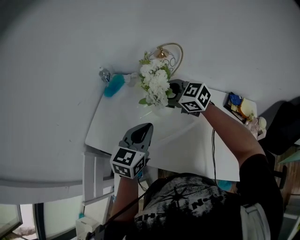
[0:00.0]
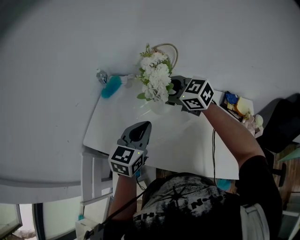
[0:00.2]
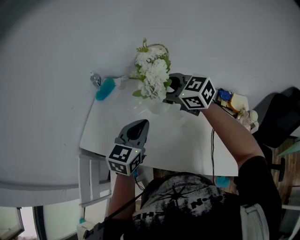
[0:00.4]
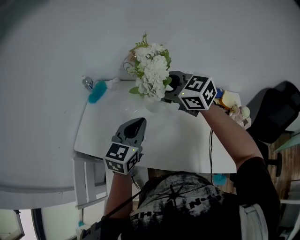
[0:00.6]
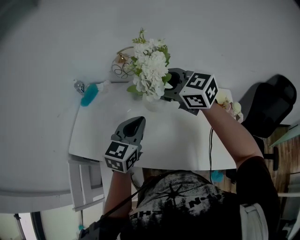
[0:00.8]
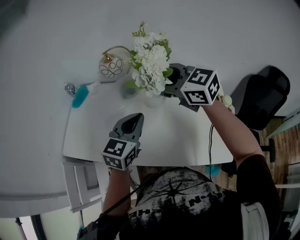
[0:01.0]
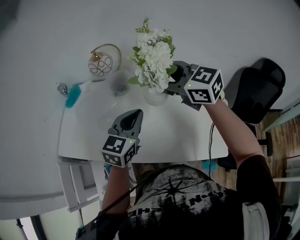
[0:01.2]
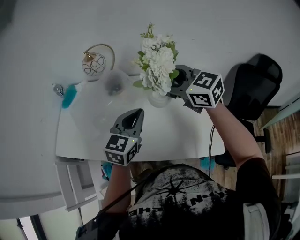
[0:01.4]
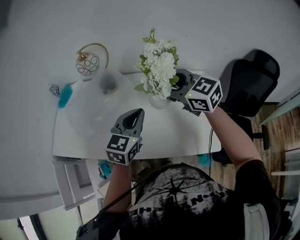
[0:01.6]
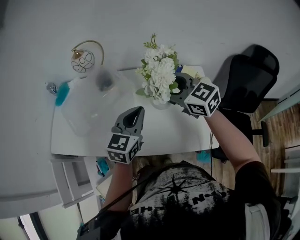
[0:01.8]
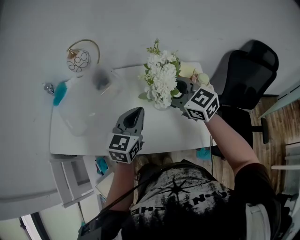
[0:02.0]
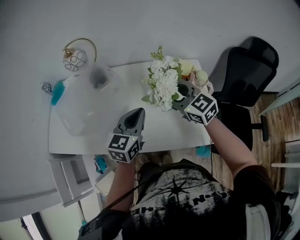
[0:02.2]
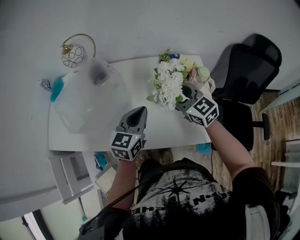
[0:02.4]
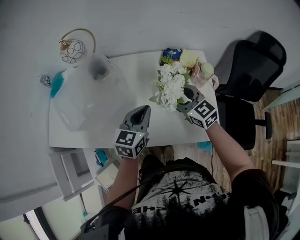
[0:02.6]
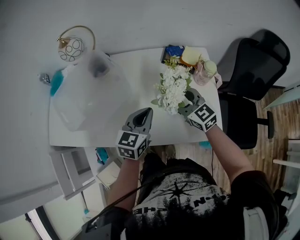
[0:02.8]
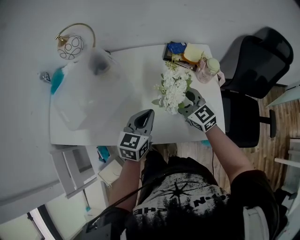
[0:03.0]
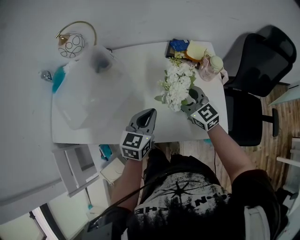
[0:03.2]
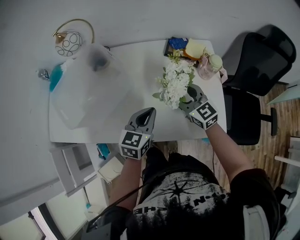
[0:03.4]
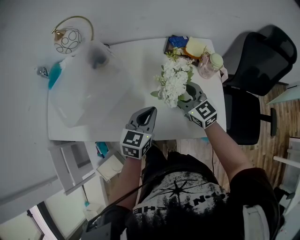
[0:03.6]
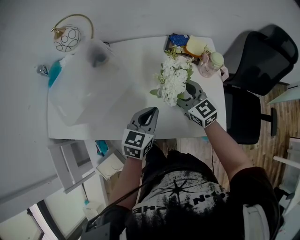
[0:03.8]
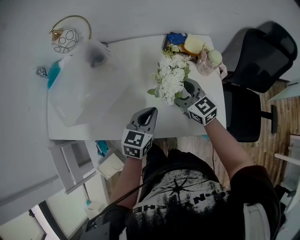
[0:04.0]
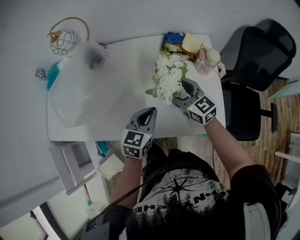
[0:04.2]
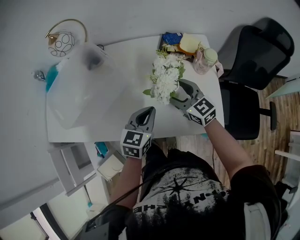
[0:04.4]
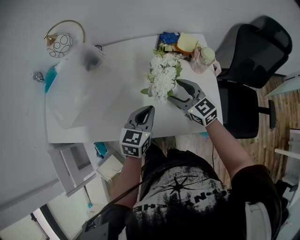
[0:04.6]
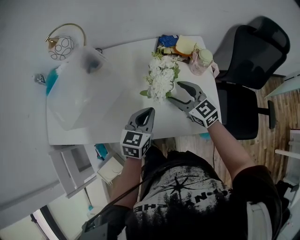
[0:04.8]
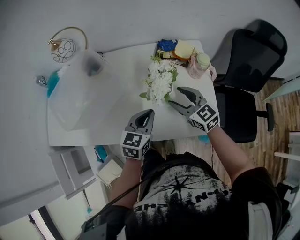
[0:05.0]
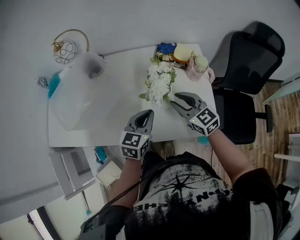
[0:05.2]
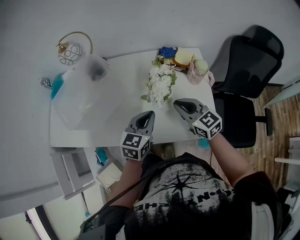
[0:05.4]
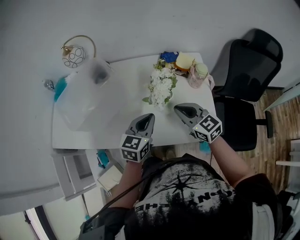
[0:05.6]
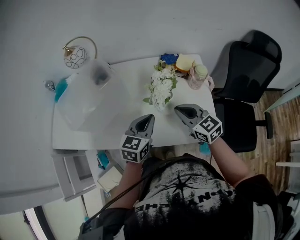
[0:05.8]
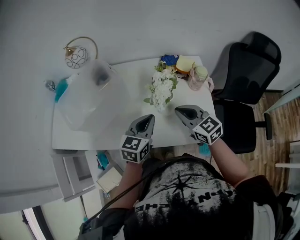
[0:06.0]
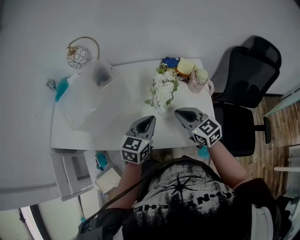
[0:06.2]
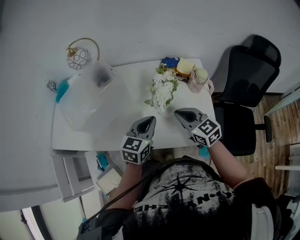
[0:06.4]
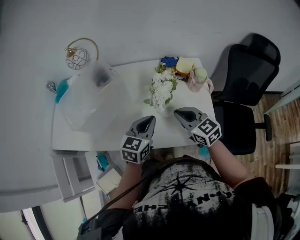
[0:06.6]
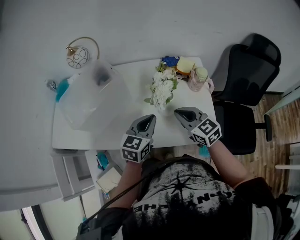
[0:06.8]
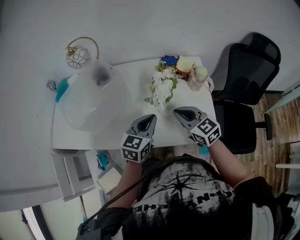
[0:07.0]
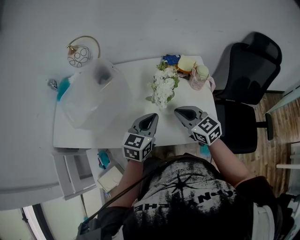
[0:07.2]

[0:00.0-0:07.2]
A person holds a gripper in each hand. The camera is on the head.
0:00.0 to 0:01.4: The right gripper shifts about 30 cm to the right, backward and upward, and swivels some 20 degrees. Meanwhile the left gripper shifts some 20 cm to the right.
0:01.4 to 0:02.8: The right gripper moves downward and to the right, roughly 25 cm; the left gripper shifts roughly 15 cm downward and to the right.
0:02.8 to 0:04.4: The left gripper ends up approximately 5 cm from where it was.
0:04.4 to 0:05.8: The right gripper shifts about 10 cm backward and upward, and closes its fingers. The left gripper travels upward by about 5 cm.
0:05.8 to 0:07.2: The grippers move only a little.

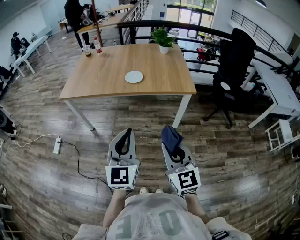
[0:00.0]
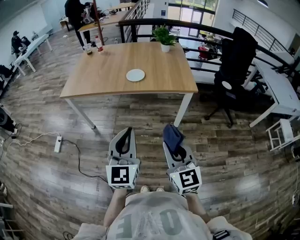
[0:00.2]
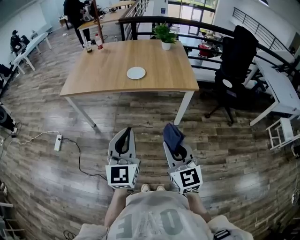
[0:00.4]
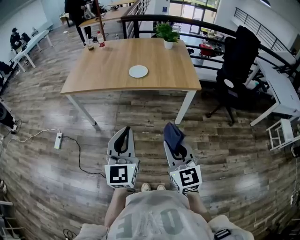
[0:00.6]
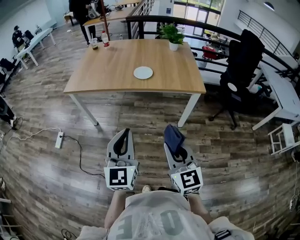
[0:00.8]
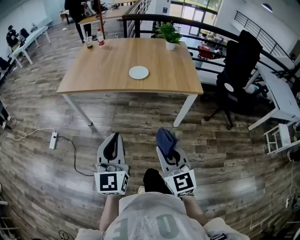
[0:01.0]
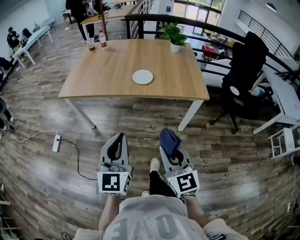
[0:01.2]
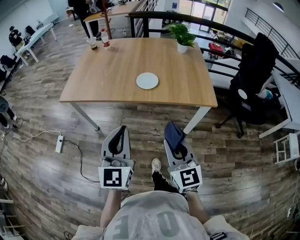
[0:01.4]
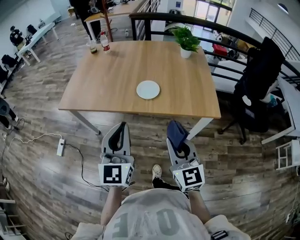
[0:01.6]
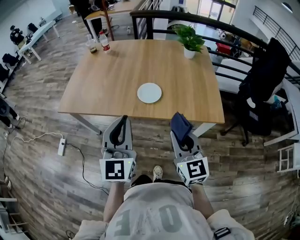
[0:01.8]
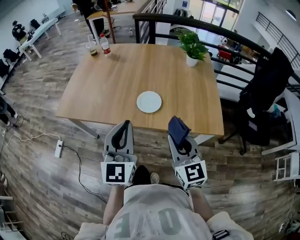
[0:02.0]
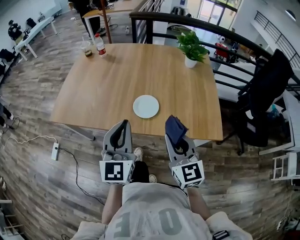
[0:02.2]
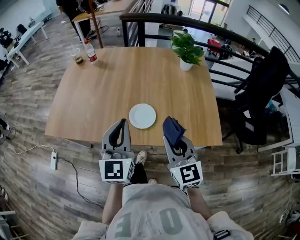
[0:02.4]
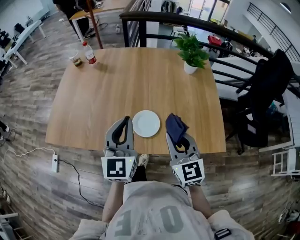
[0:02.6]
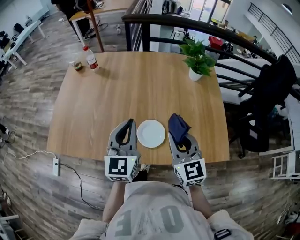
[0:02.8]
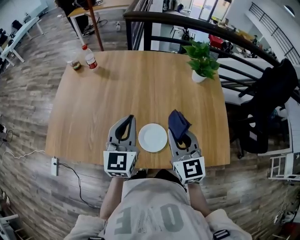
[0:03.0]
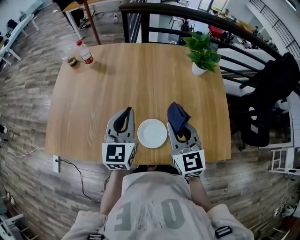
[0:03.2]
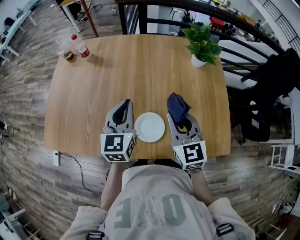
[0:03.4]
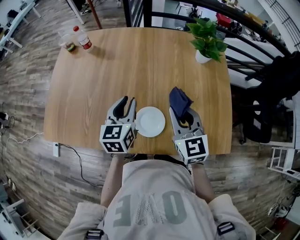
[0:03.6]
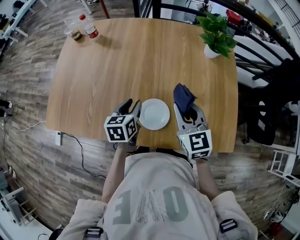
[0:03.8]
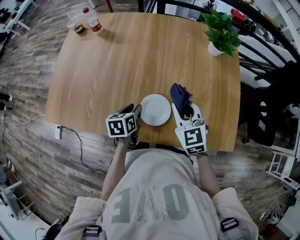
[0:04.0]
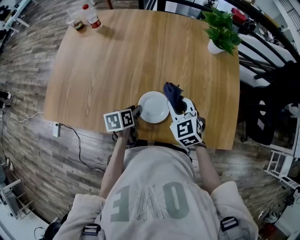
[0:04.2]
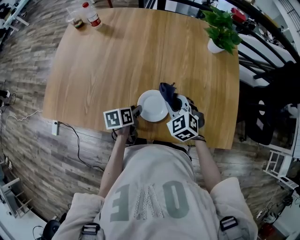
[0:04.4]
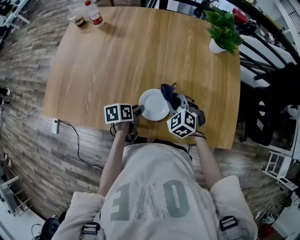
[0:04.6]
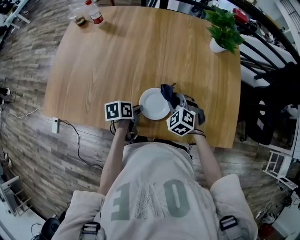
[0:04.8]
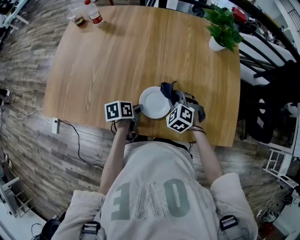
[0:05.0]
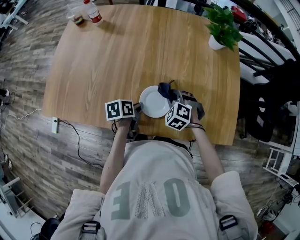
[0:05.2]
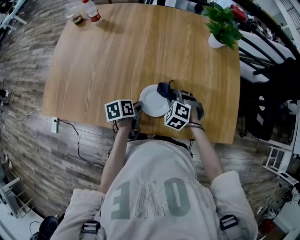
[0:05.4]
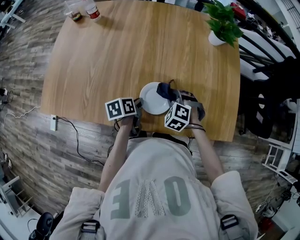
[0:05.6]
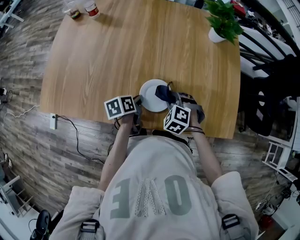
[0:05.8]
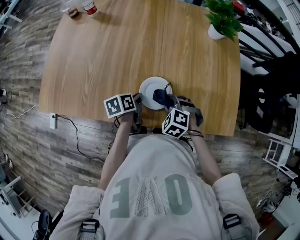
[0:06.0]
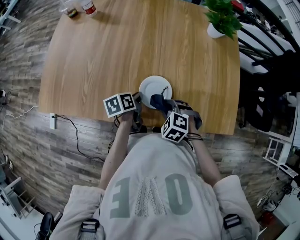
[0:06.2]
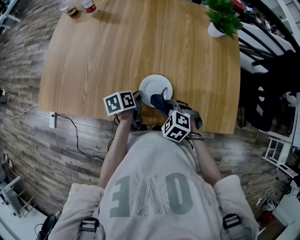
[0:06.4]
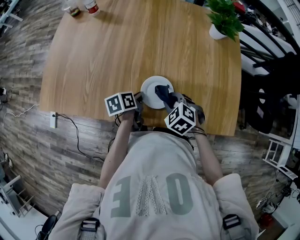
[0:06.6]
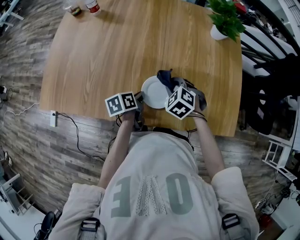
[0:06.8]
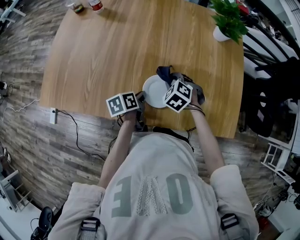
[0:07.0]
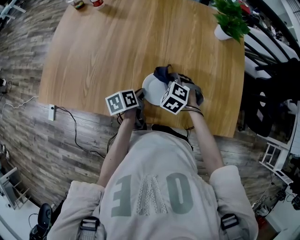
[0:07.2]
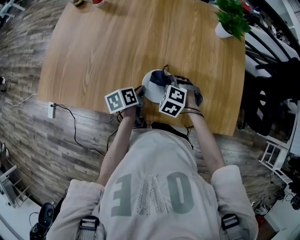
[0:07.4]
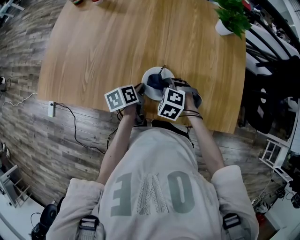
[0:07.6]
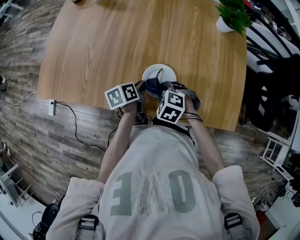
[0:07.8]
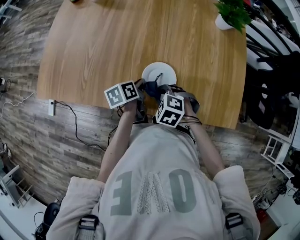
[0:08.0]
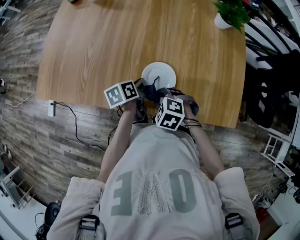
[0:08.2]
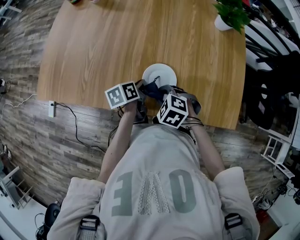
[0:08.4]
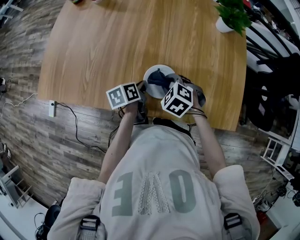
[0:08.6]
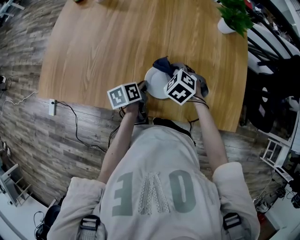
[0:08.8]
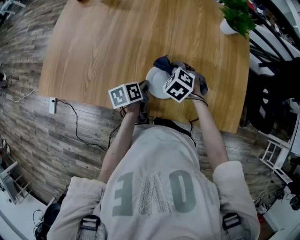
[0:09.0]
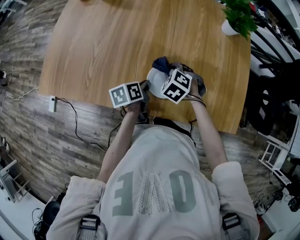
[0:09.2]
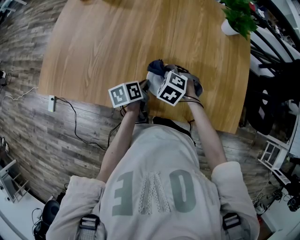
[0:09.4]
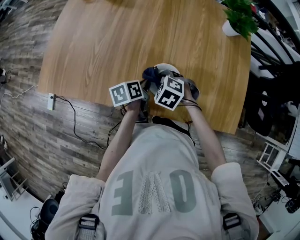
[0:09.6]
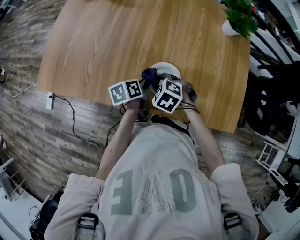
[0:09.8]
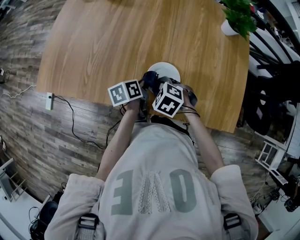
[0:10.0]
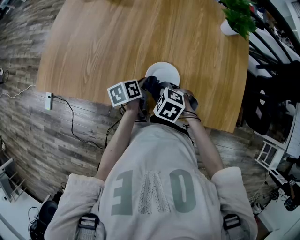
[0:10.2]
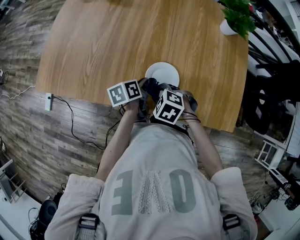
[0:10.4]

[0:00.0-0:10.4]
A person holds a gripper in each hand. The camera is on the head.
0:00.0 to 0:01.4: The two grippers go some 20 cm forward.
0:01.4 to 0:03.0: The pair of grippers is taken forward, approximately 50 cm.
0:03.0 to 0:04.4: The left gripper is displaced downward by some 25 cm, angles its fingers downward, by some 40 degrees, and opens. Meanwhile the right gripper shifts about 15 cm downward, and tips its fingers downward by approximately 30 degrees.
0:04.4 to 0:06.0: The right gripper heads backward and downward, covering some 10 cm, and rotates some 20 degrees. The left gripper closes.
0:06.0 to 0:07.4: The right gripper travels forward by roughly 5 cm.
0:07.4 to 0:09.0: The right gripper moves about 10 cm backward and comes back.
0:09.0 to 0:10.4: The right gripper goes about 15 cm backward and to the left.

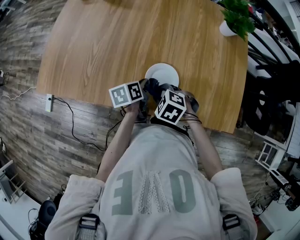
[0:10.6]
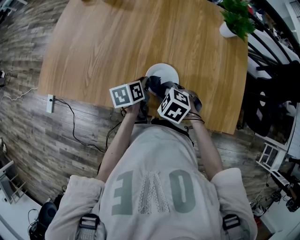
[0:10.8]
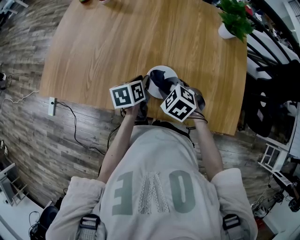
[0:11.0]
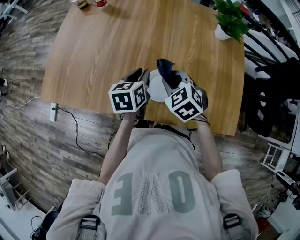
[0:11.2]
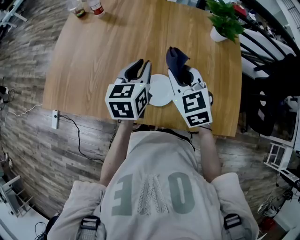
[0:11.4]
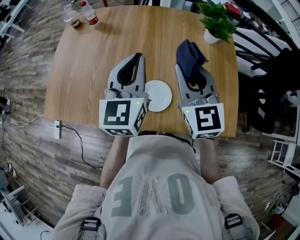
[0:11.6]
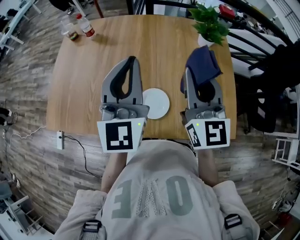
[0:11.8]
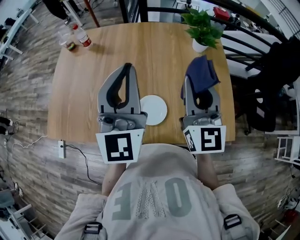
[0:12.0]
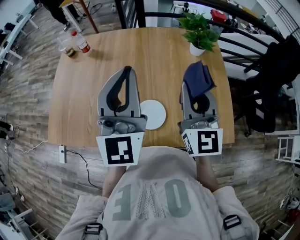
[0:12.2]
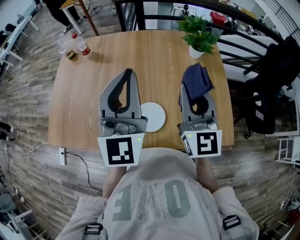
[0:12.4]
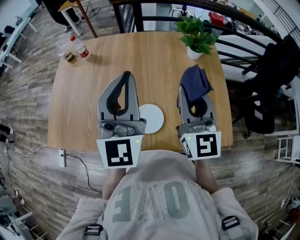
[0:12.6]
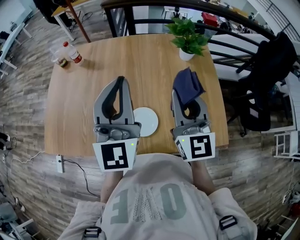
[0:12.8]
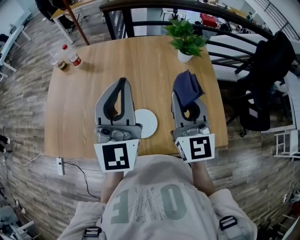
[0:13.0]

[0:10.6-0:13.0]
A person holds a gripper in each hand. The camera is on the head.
0:10.6 to 0:11.8: The grippers both shift upward by about 35 cm. The left gripper tips its fingers upward by about 50 degrees, while the right gripper tilts its fingers approximately 70 degrees upward.
0:11.8 to 0:13.0: The grippers move only a little.

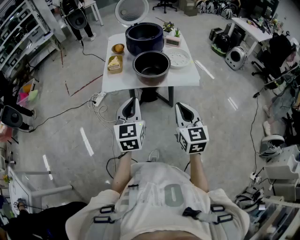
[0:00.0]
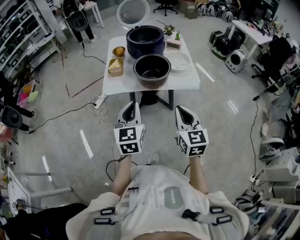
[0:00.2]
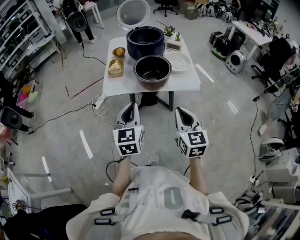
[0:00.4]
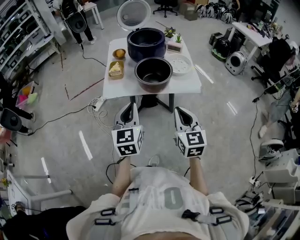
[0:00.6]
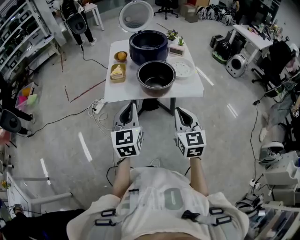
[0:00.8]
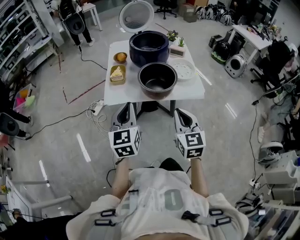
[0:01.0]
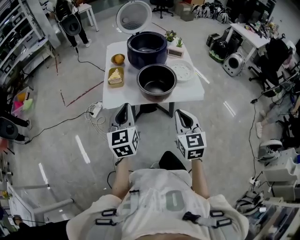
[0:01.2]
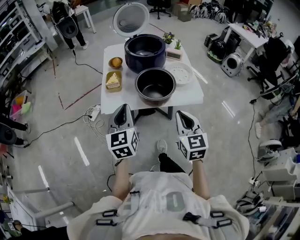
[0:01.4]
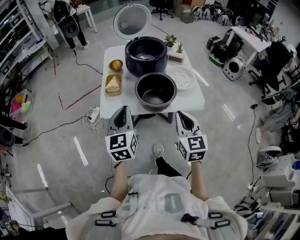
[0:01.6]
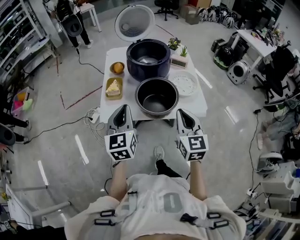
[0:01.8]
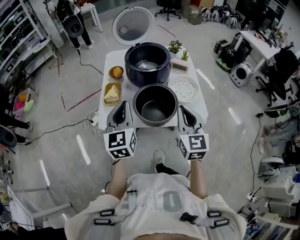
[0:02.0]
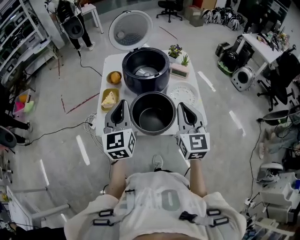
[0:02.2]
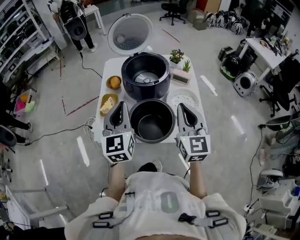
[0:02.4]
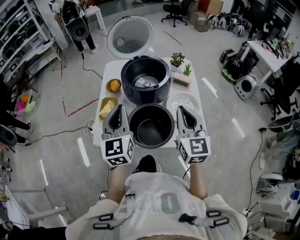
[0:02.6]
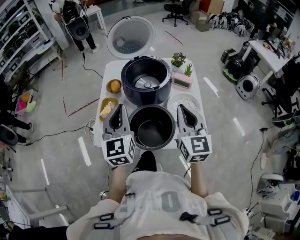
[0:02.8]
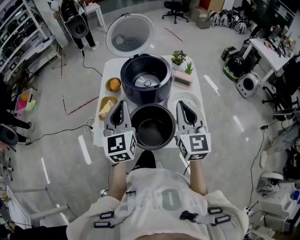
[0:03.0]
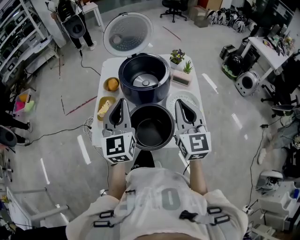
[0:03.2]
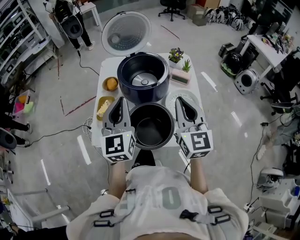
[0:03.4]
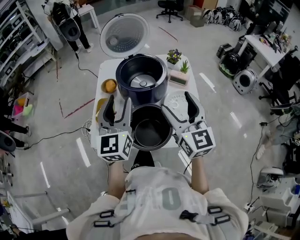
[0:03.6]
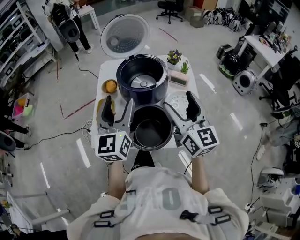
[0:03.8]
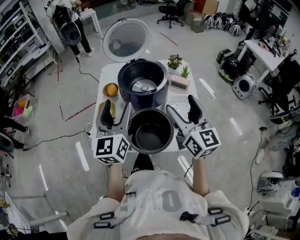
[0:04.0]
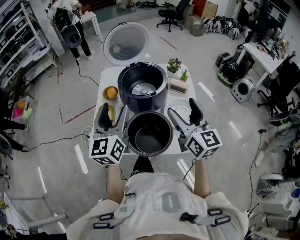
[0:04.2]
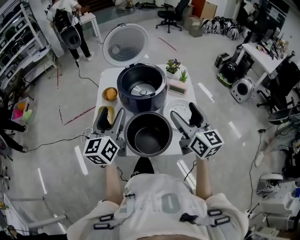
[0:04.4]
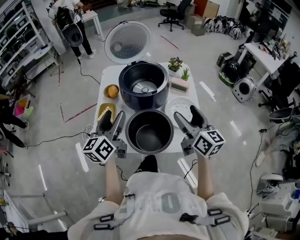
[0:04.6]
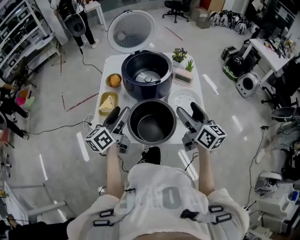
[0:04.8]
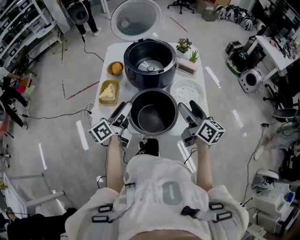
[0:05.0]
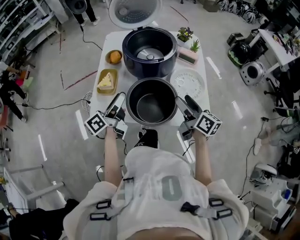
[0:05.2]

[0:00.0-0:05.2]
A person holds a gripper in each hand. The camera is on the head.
0:00.0 to 0:01.8: Both grippers travel together forward, roughly 20 cm.
0:01.8 to 0:03.4: The right gripper moves forward, some 20 cm, while the left gripper goes roughly 20 cm forward and to the right.
0:03.4 to 0:05.2: The grippers both shift downward by roughly 15 cm. The right gripper rolls clockwise, seen from behind, by about 50 degrees, and opens its fingers; the left gripper rotates around the line of its fingers by about 60 degrees, counterclockwise from behind, and opens.
